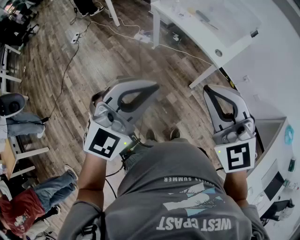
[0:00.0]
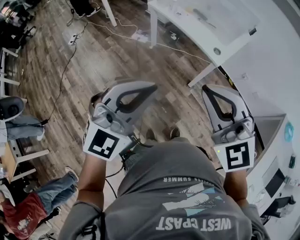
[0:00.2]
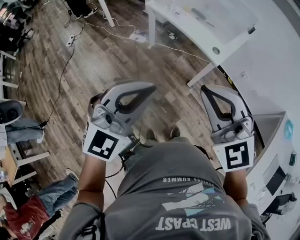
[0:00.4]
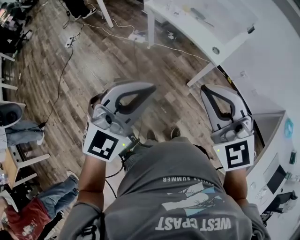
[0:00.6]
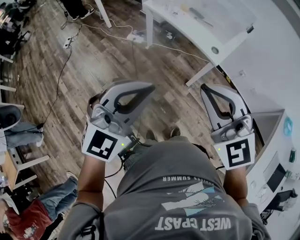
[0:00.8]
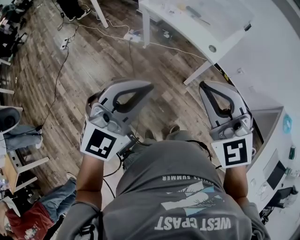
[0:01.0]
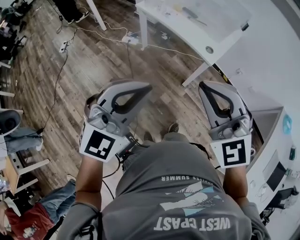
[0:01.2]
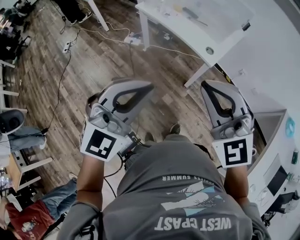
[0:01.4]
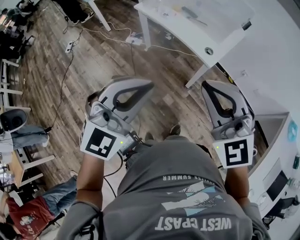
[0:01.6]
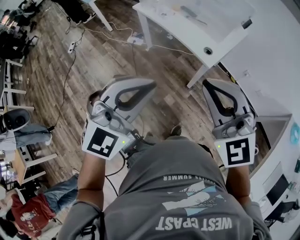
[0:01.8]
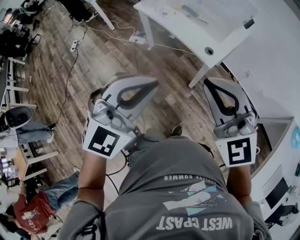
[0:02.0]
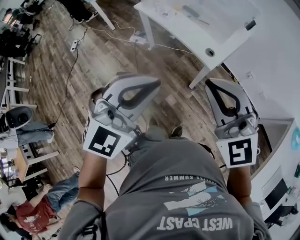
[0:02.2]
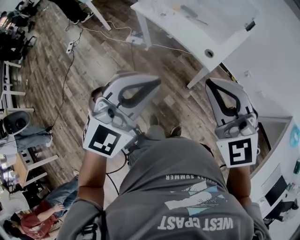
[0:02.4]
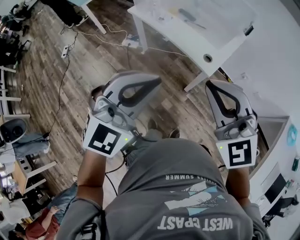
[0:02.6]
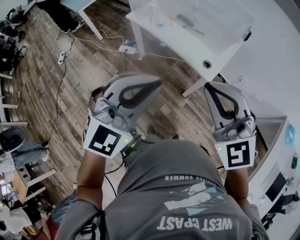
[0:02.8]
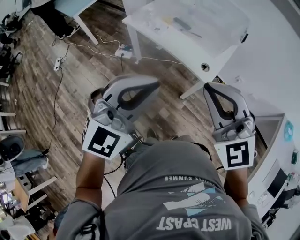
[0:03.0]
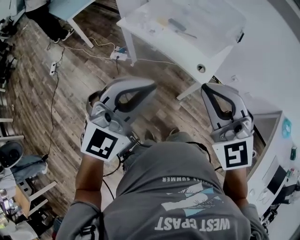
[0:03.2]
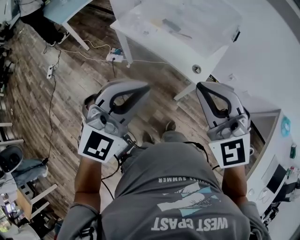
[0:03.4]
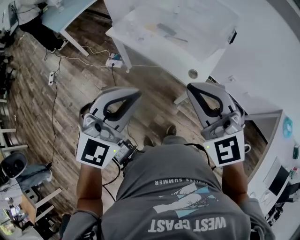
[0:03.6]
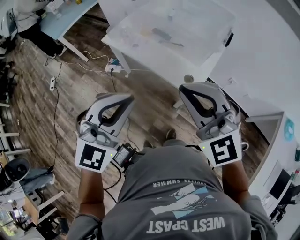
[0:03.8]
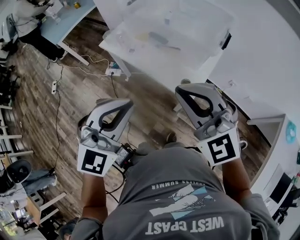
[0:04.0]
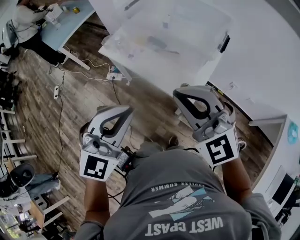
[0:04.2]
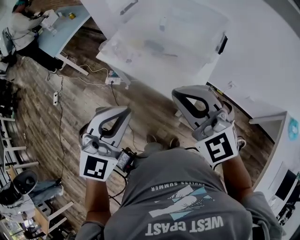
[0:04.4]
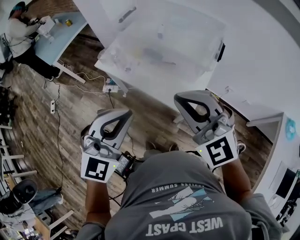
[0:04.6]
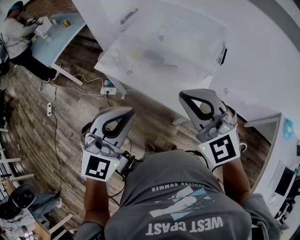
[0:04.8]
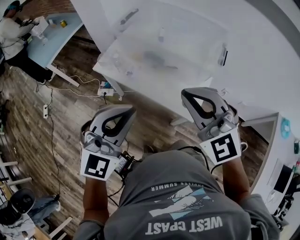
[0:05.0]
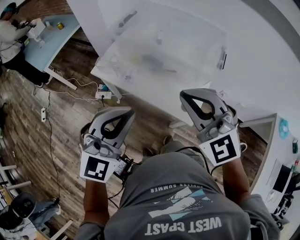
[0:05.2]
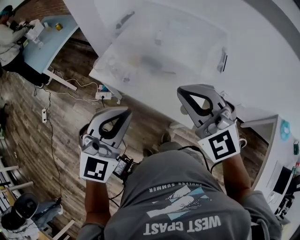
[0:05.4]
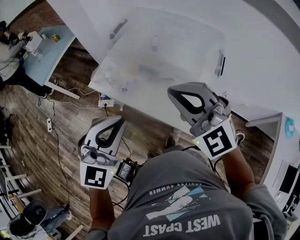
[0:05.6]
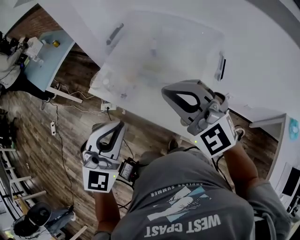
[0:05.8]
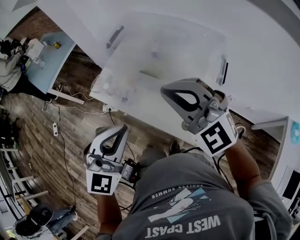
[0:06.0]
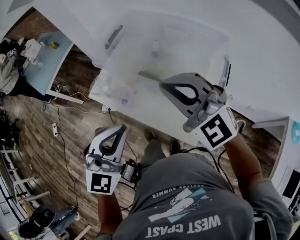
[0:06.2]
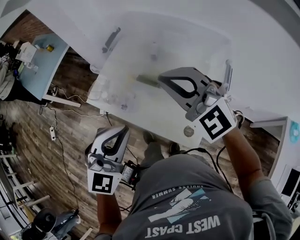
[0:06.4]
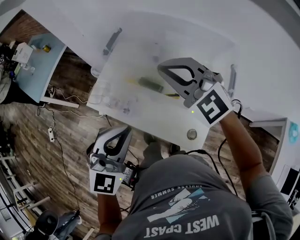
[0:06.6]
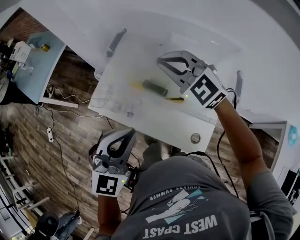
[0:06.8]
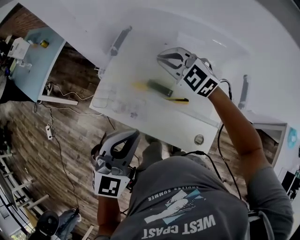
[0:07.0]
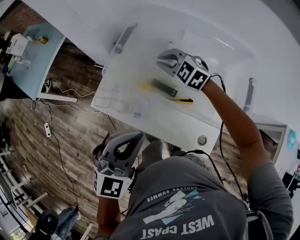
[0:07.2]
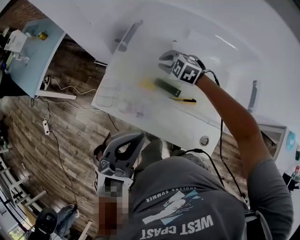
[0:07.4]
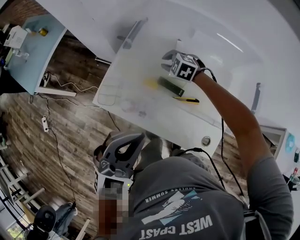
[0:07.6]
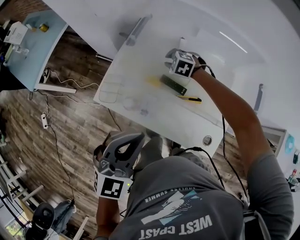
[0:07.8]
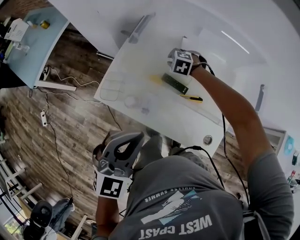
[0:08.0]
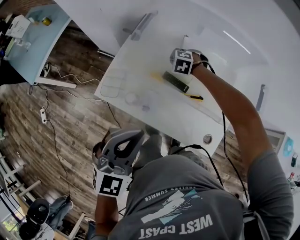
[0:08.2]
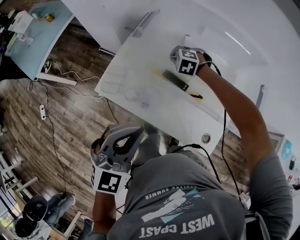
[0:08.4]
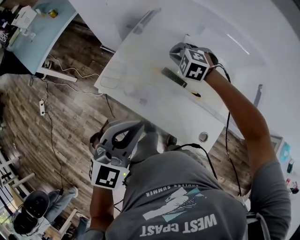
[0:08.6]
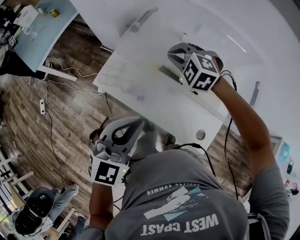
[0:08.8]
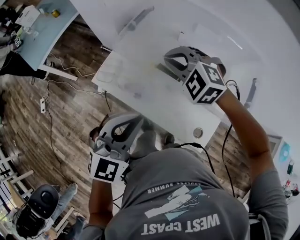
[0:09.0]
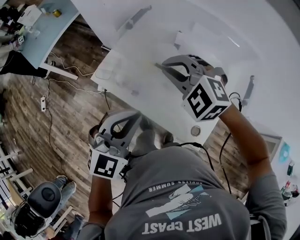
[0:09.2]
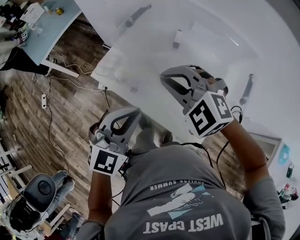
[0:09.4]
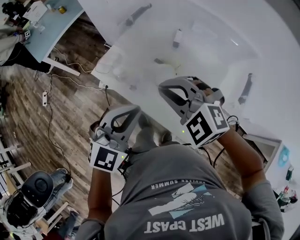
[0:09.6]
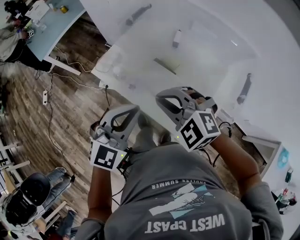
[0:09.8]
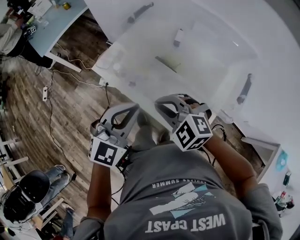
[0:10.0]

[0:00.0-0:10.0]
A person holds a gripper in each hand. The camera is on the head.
0:00.0 to 0:01.4: Both grippers move forward, approximately 5 cm.
0:01.4 to 0:02.8: The grippers both shift forward by approximately 15 cm.
0:02.8 to 0:04.2: The grippers both shift forward and to the right by approximately 15 cm.
0:04.2 to 0:05.8: Both grippers move forward, roughly 20 cm.
0:05.8 to 0:07.2: The right gripper shifts approximately 40 cm forward and downward, and turns by approximately 30 degrees, while the left gripper heads forward, covering about 15 cm.
0:07.2 to 0:08.6: The right gripper is displaced downward by some 5 cm, and changes its angle by about 20 degrees.
0:08.6 to 0:10.0: The right gripper heads backward, covering roughly 30 cm, and swivels about 20 degrees; the left gripper goes roughly 10 cm backward and to the right.

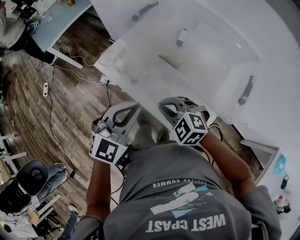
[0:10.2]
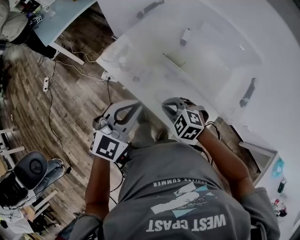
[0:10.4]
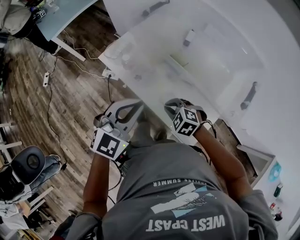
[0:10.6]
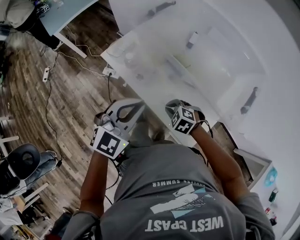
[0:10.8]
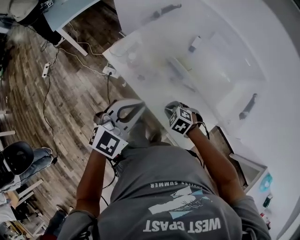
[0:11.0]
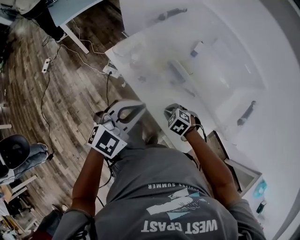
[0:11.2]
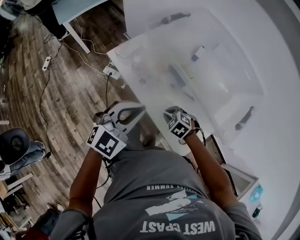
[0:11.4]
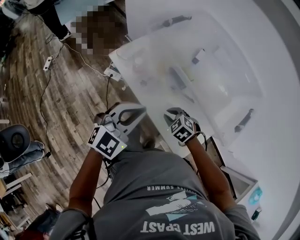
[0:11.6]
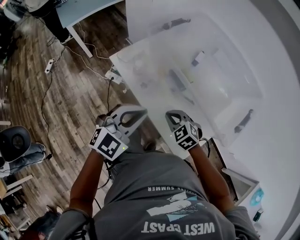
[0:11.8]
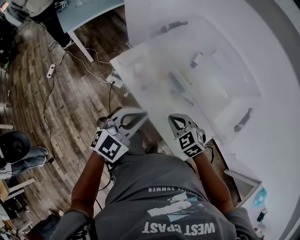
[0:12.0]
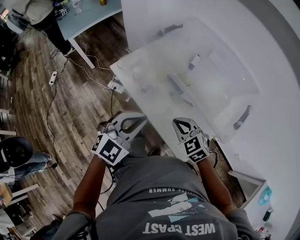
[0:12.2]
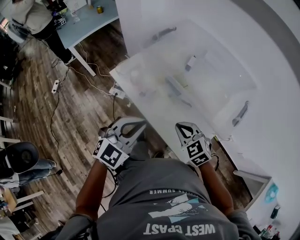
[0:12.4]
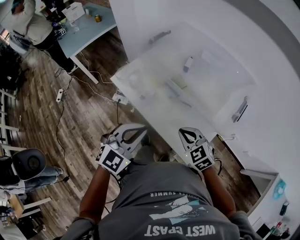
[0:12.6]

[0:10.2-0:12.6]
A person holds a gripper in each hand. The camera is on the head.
0:10.2 to 0:11.4: The right gripper heads downward, covering roughly 15 cm, and swivels some 20 degrees.
0:11.4 to 0:12.6: The left gripper moves backward, about 5 cm. The right gripper moves upward and backward, roughly 20 cm, and points its fingers roughly 30 degrees further upward.

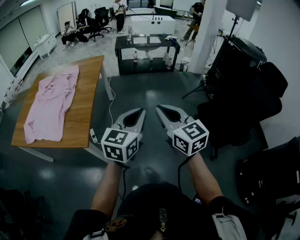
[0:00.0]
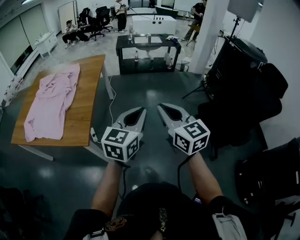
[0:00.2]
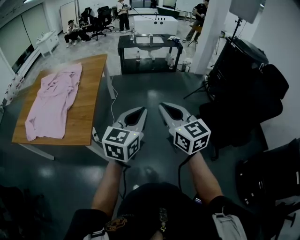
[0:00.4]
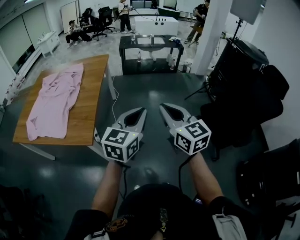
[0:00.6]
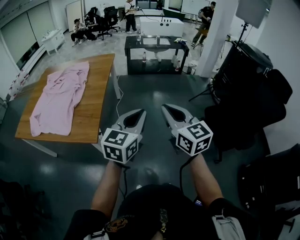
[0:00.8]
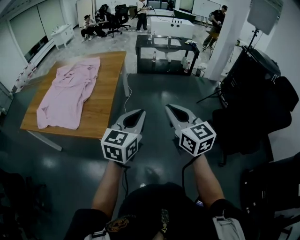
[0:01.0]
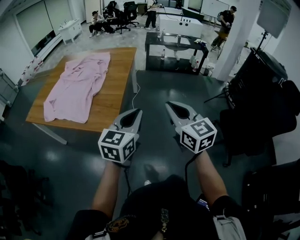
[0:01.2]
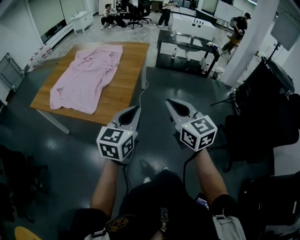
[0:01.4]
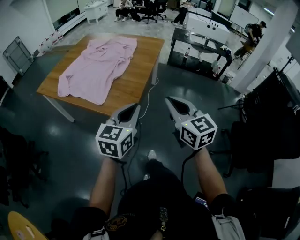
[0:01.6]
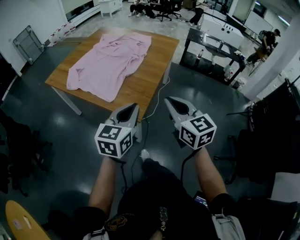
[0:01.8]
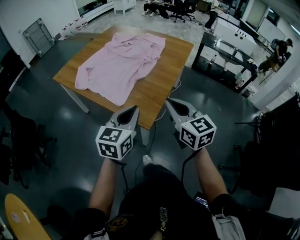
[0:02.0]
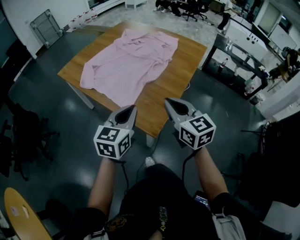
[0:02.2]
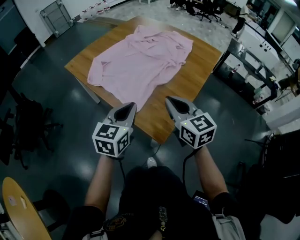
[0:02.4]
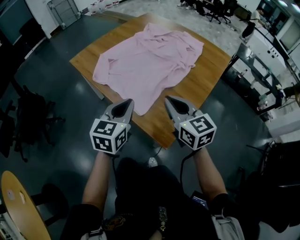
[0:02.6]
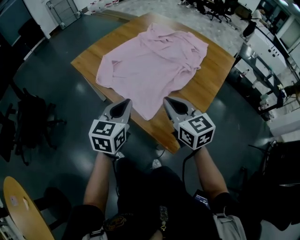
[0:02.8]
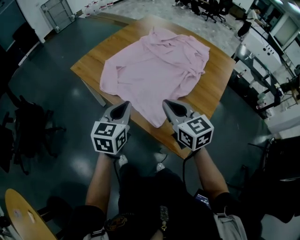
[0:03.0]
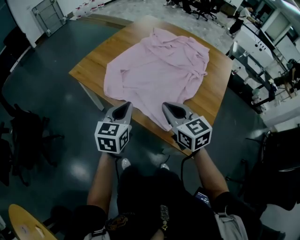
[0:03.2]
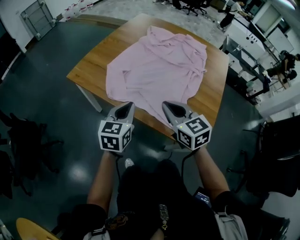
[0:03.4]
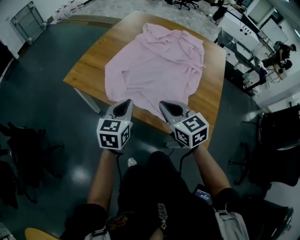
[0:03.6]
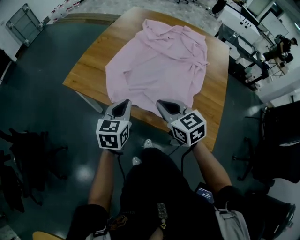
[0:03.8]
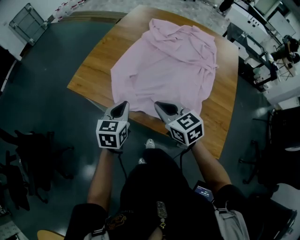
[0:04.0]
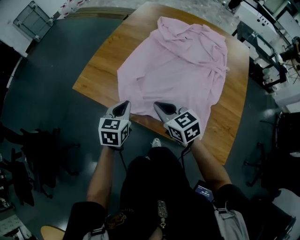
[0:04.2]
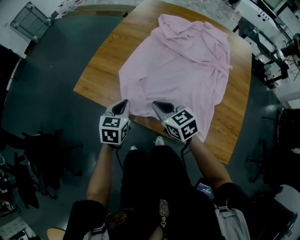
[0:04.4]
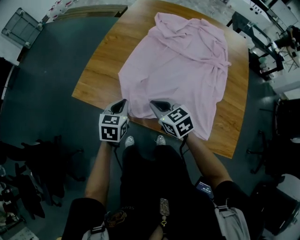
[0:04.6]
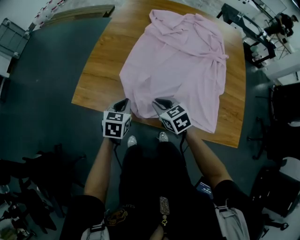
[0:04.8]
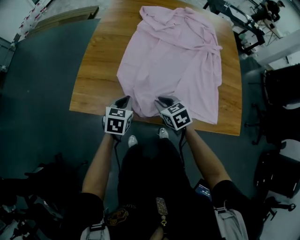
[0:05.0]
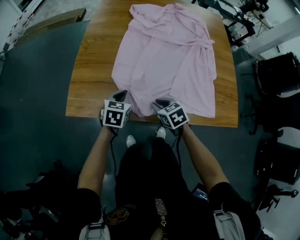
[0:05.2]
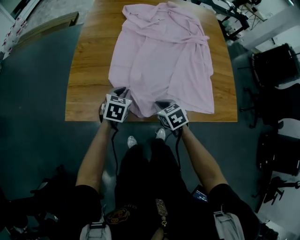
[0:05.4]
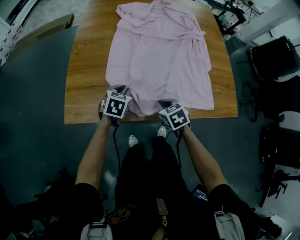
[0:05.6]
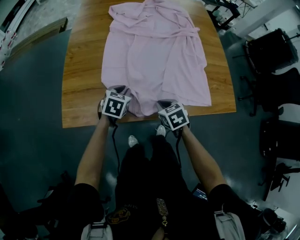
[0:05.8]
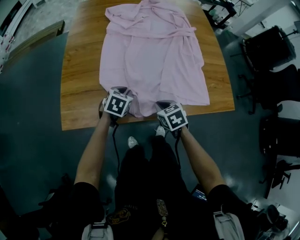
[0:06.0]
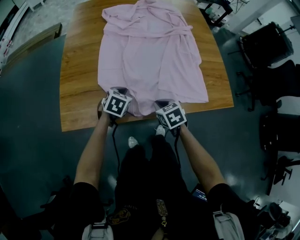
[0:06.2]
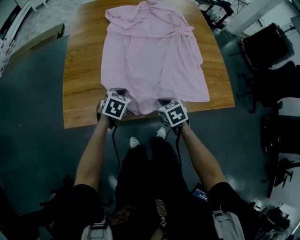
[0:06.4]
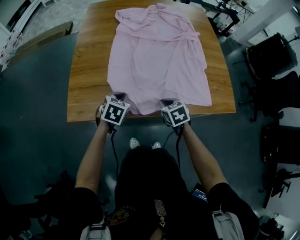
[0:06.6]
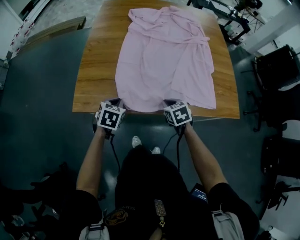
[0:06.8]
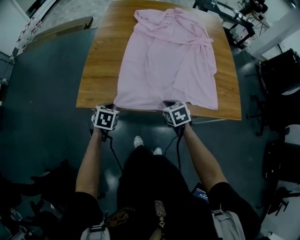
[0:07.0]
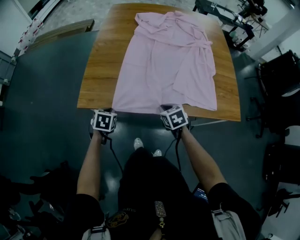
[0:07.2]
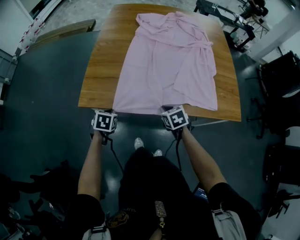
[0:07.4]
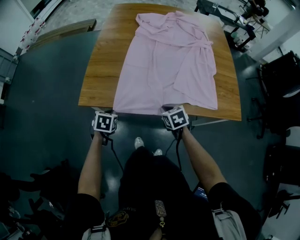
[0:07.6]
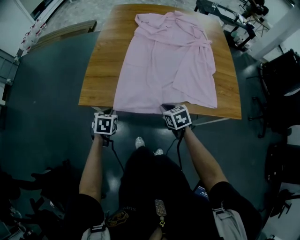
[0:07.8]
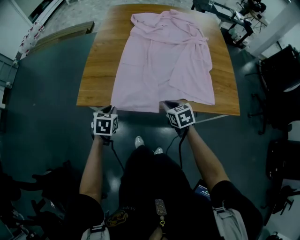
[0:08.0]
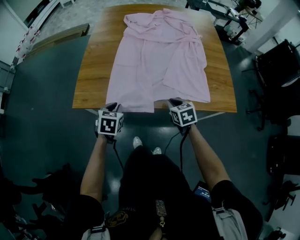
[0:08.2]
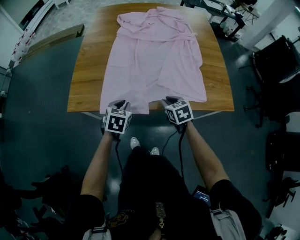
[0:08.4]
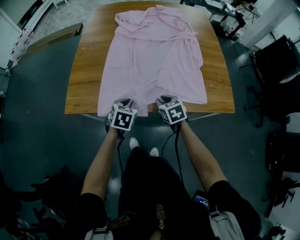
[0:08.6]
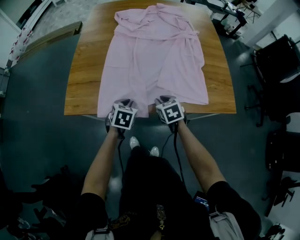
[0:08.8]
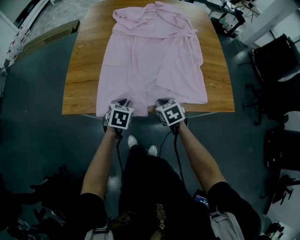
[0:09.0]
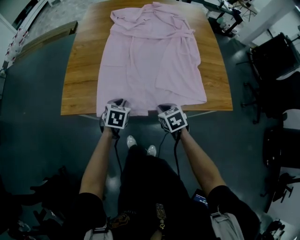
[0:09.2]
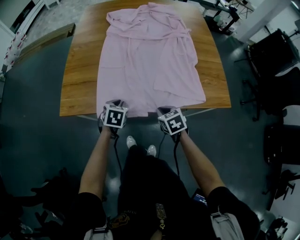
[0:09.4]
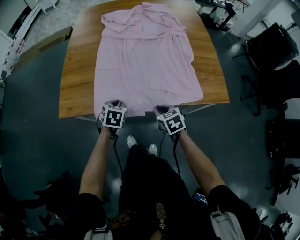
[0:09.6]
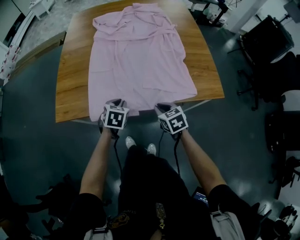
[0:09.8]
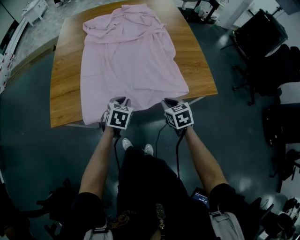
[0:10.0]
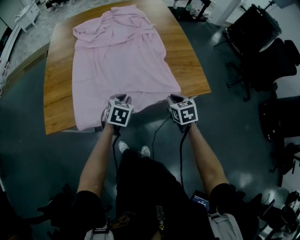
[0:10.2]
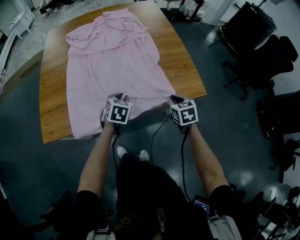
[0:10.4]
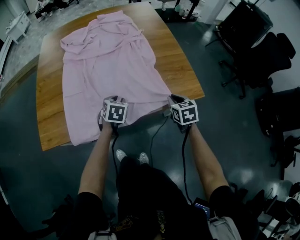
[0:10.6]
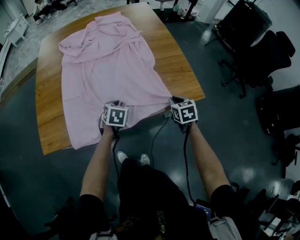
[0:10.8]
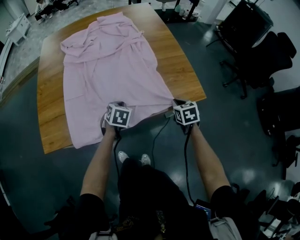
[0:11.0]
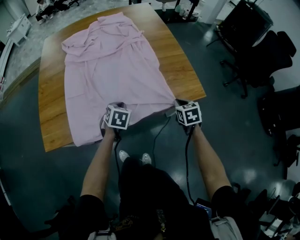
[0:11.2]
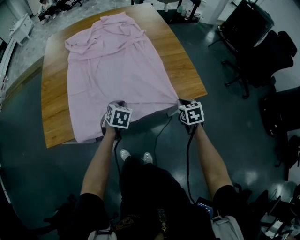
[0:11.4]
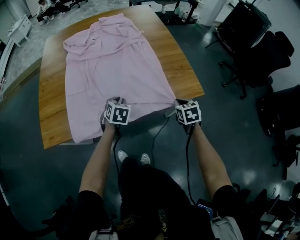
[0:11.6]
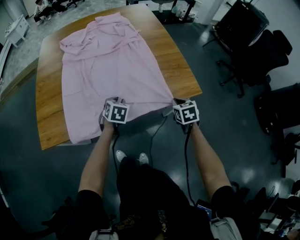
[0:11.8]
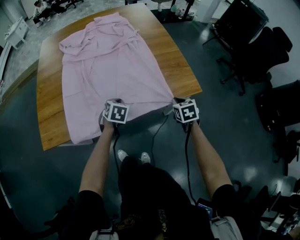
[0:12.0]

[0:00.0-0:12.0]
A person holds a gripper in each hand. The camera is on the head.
0:00.0 to 0:01.6: The two grippers go approximately 25 cm to the left. The left gripper changes its angle by roughly 20 degrees.
0:01.6 to 0:03.0: The two grippers travel together, roughly 40 cm. The right gripper swivels some 30 degrees, while the left gripper changes its angle by approximately 30 degrees.
0:03.0 to 0:04.4: The right gripper is displaced to the left, forward and downward by approximately 30 cm; the left gripper heads forward, to the left and downward, covering about 30 cm.
0:04.4 to 0:06.0: Both grippers travel together downward, some 10 cm. The right gripper turns by about 50 degrees. Meanwhile the left gripper rotates about 50 degrees.
0:06.0 to 0:07.6: The right gripper shifts by roughly 5 cm; the left gripper heads to the left and backward, covering about 25 cm, and turns by roughly 30 degrees.
0:07.6 to 0:09.0: The right gripper travels to the right by roughly 5 cm. The left gripper shifts about 20 cm to the right.
0:09.0 to 0:10.4: Both grippers travel together to the right, approximately 20 cm. The right gripper swivels about 30 degrees.
0:10.4 to 0:12.0: The right gripper goes approximately 5 cm to the right.
